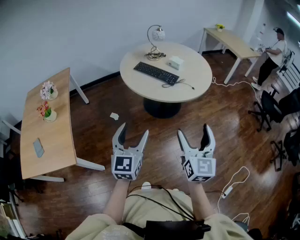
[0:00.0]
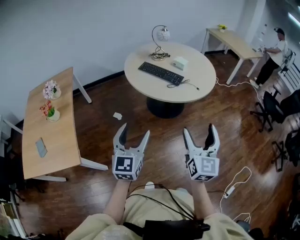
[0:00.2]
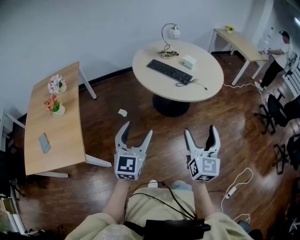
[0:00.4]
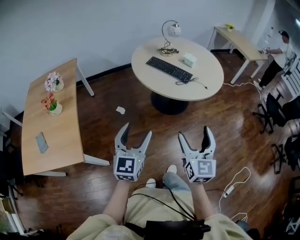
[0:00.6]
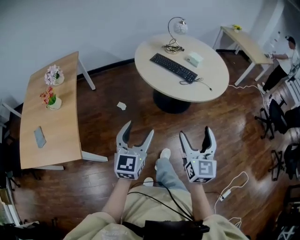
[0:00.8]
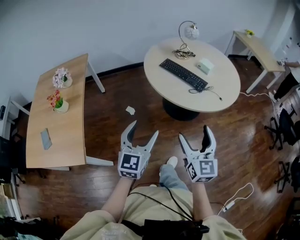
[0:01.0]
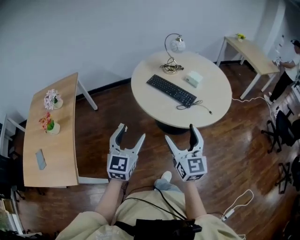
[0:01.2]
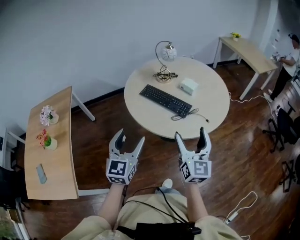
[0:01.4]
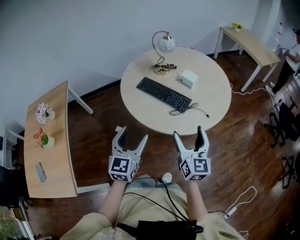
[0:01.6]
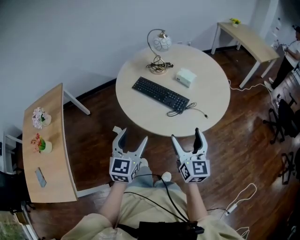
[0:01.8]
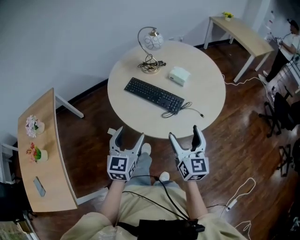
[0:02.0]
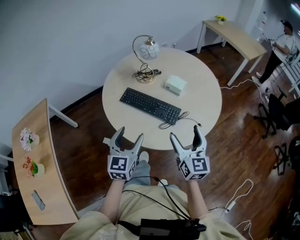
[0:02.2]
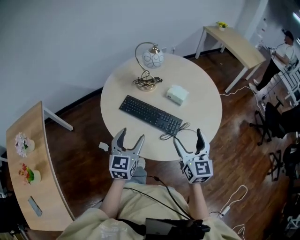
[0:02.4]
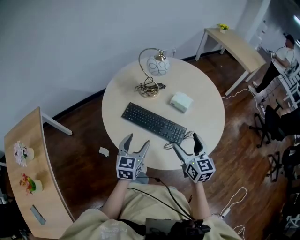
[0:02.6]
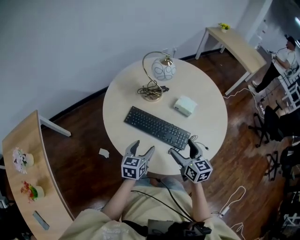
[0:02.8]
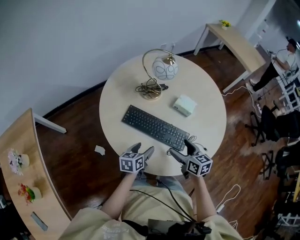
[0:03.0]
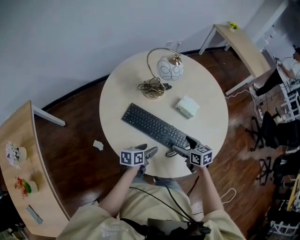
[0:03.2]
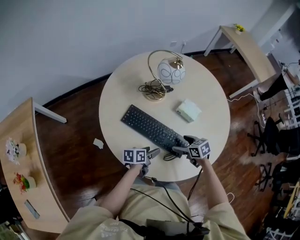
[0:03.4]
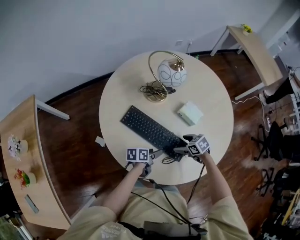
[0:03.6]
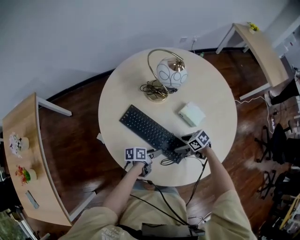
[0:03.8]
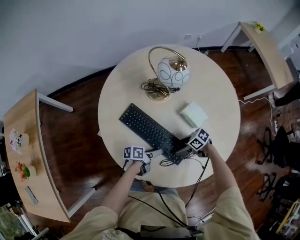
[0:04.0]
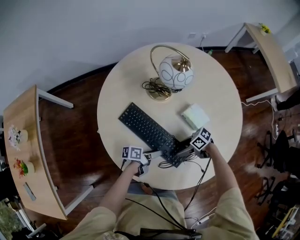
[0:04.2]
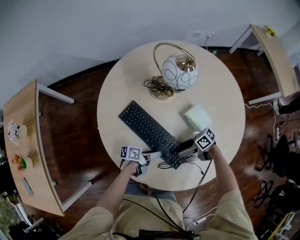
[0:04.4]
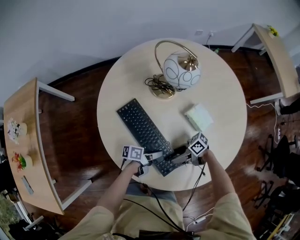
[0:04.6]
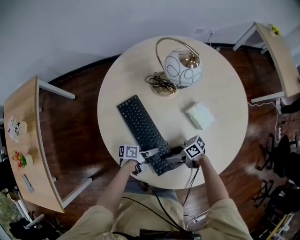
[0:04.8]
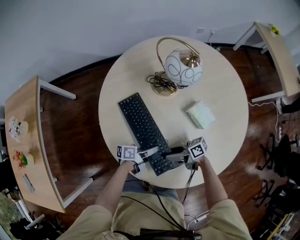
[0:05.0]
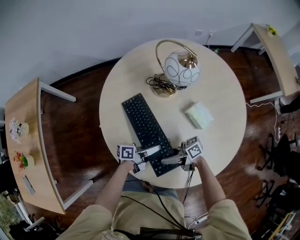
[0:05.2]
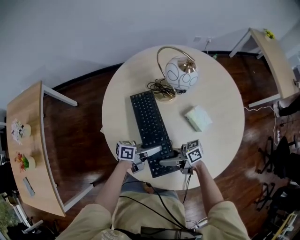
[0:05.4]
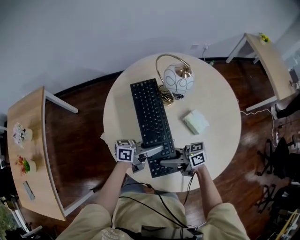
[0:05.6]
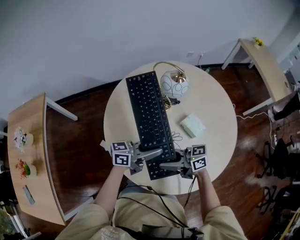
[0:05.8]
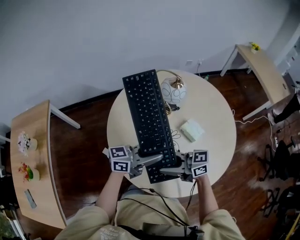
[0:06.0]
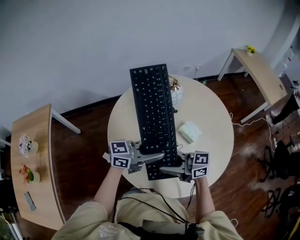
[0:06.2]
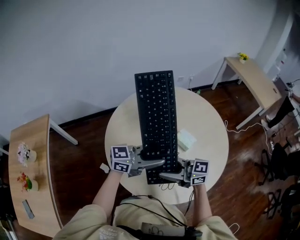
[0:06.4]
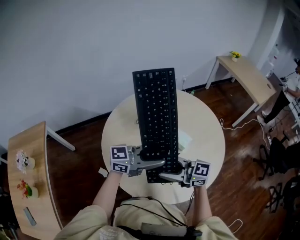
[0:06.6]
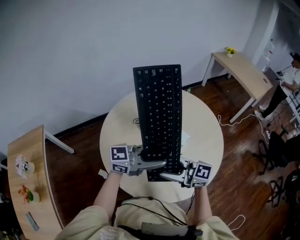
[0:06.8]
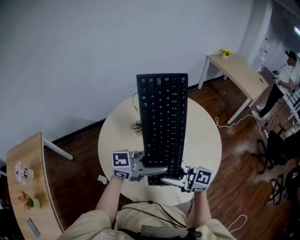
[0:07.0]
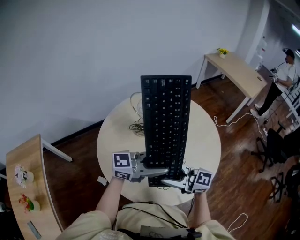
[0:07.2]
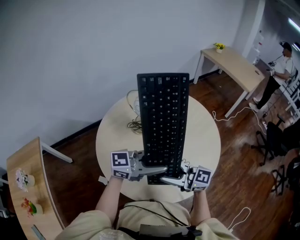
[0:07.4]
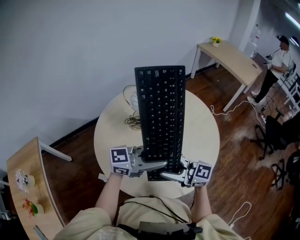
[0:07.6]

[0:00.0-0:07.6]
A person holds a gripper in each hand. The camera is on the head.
0:00.0 to 0:01.6: The two grippers go about 30 cm forward.
0:01.6 to 0:03.0: Both grippers travel together forward and downward, roughly 35 cm. The right gripper turns by some 40 degrees, while the left gripper changes its angle by some 50 degrees.
0:03.0 to 0:04.6: The left gripper moves about 15 cm, twists approximately 40 degrees counterclockwise, seen from behind, and closes. The right gripper heads downward, covering approximately 15 cm, and rotates roughly 80 degrees.
0:04.6 to 0:06.0: Both grippers move upward, roughly 30 cm. The right gripper swivels roughly 50 degrees, and closes its fingers, while the left gripper rolls clockwise, seen from behind, by approximately 60 degrees.
0:06.0 to 0:07.6: The left gripper changes place by some 15 cm, and changes its angle by approximately 30 degrees. Meanwhile the right gripper travels upward by some 5 cm, and swivels roughly 40 degrees.

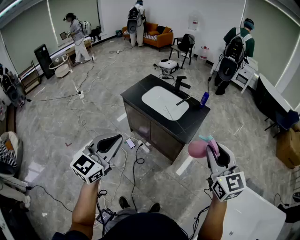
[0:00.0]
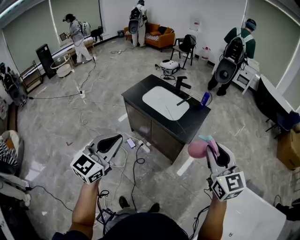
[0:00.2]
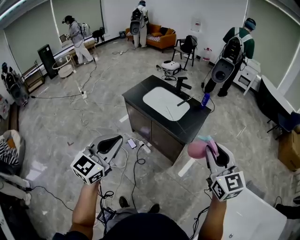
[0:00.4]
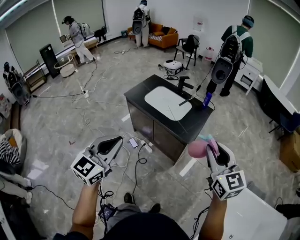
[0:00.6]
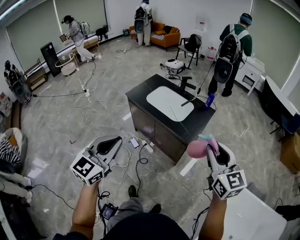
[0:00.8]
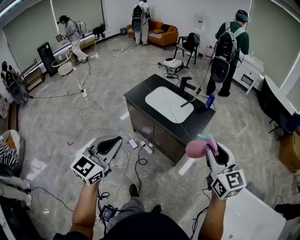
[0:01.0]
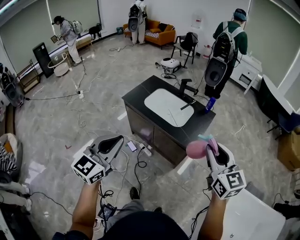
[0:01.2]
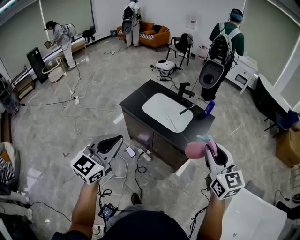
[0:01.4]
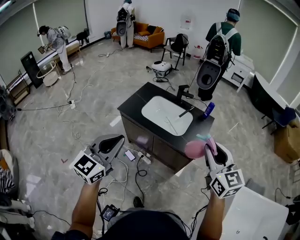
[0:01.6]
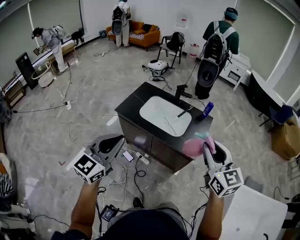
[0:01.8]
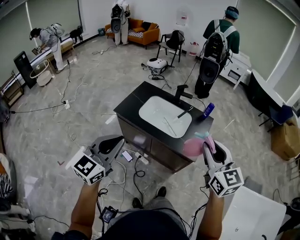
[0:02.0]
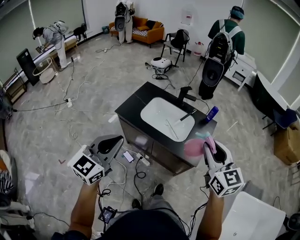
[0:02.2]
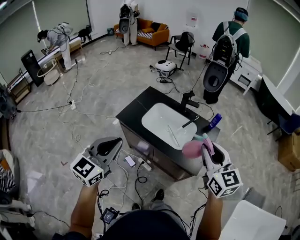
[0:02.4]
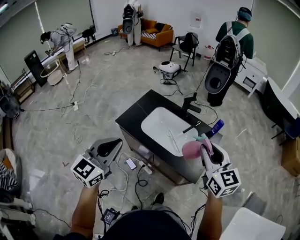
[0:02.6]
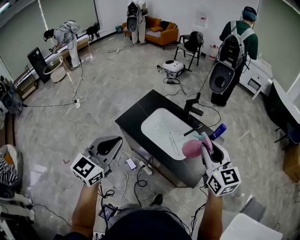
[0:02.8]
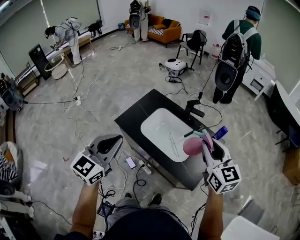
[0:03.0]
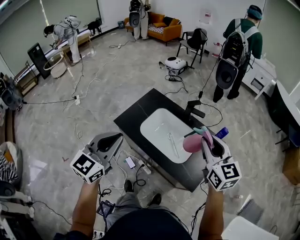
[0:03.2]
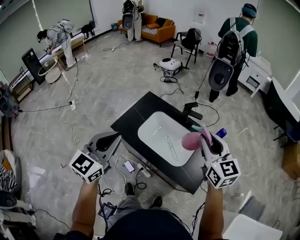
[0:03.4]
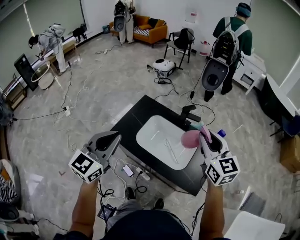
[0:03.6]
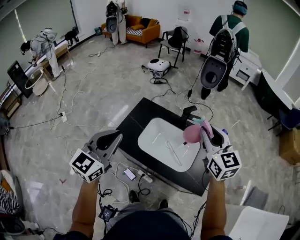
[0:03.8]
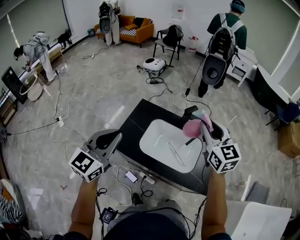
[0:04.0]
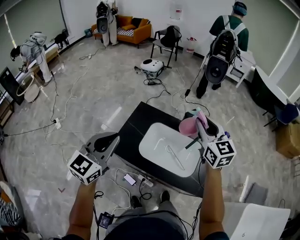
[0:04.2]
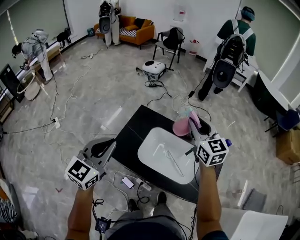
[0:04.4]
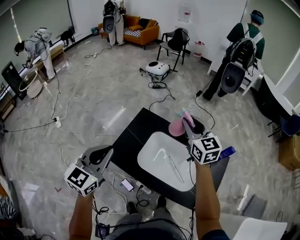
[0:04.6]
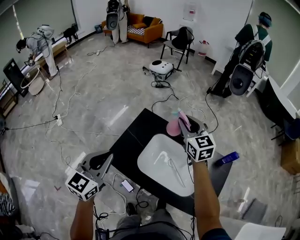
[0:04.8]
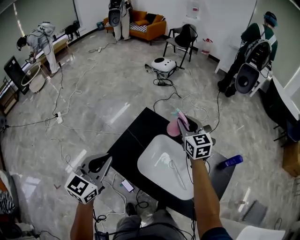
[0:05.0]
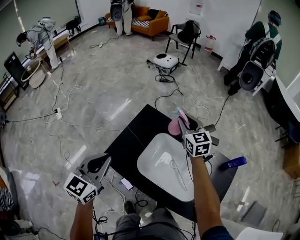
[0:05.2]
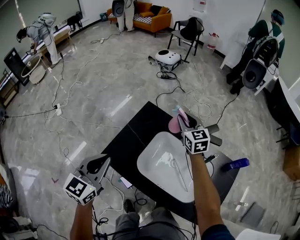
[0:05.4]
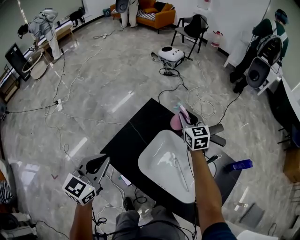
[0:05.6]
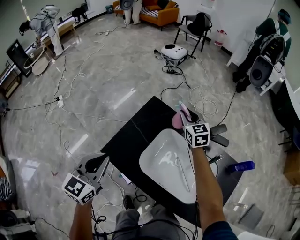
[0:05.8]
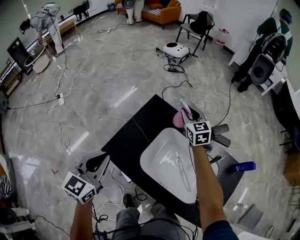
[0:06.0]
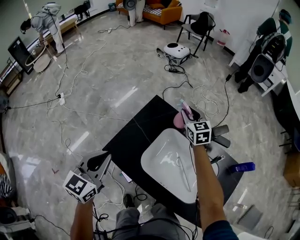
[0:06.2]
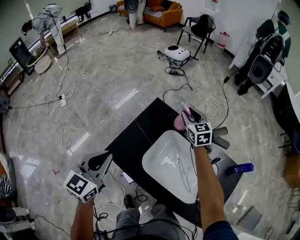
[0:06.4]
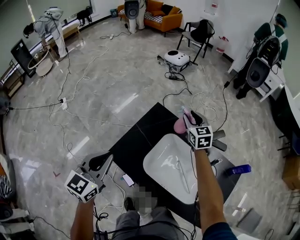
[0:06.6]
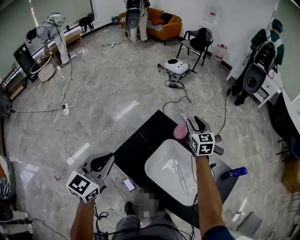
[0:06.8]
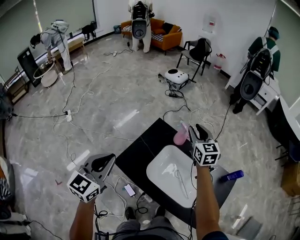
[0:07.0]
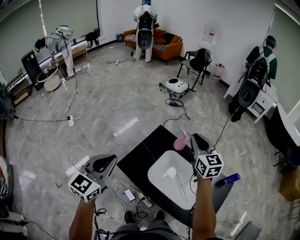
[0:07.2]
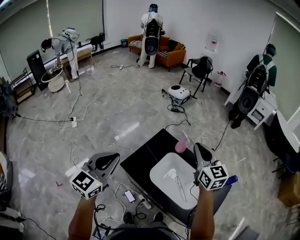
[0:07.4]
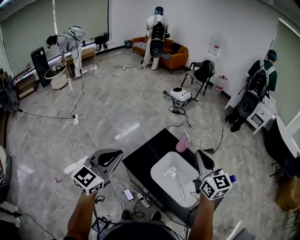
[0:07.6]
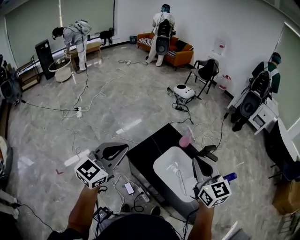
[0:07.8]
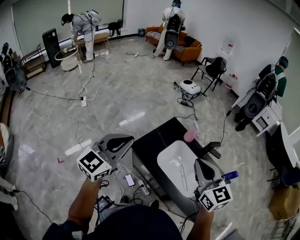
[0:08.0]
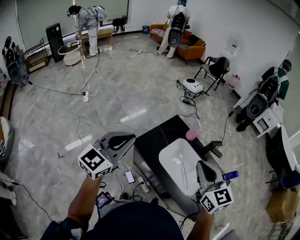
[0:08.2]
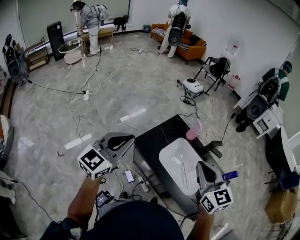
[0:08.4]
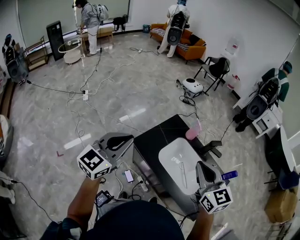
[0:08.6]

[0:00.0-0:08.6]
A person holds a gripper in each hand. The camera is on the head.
0:00.0 to 0:01.4: Both grippers move forward and to the left, approximately 15 cm.
0:01.4 to 0:02.8: The grippers both shift forward by some 30 cm.
0:02.8 to 0:04.4: Both grippers travel together forward and to the left, roughly 30 cm.
0:04.4 to 0:05.8: The left gripper is displaced downward by about 20 cm; the right gripper moves downward and forward, some 40 cm.
0:05.8 to 0:07.2: The left gripper travels upward by approximately 20 cm. Meanwhile the right gripper heads upward and backward, covering roughly 30 cm.
0:07.2 to 0:08.6: The left gripper travels backward and upward by about 15 cm. The right gripper heads backward, covering roughly 30 cm.

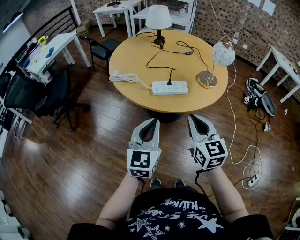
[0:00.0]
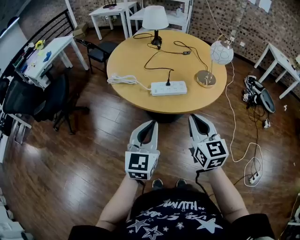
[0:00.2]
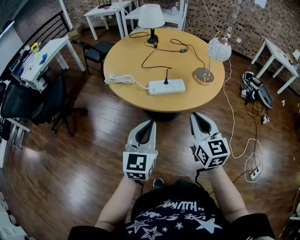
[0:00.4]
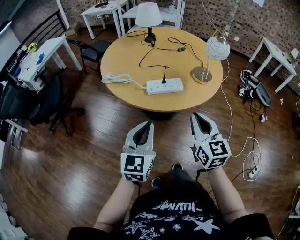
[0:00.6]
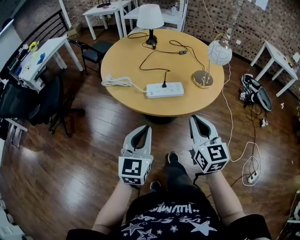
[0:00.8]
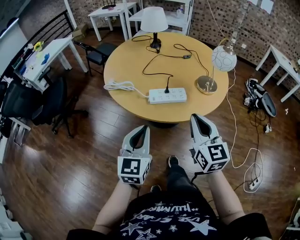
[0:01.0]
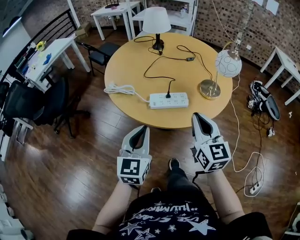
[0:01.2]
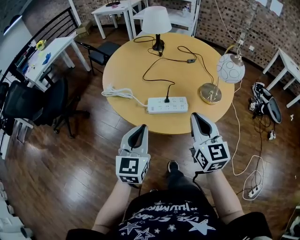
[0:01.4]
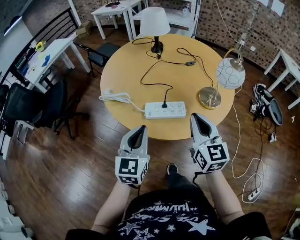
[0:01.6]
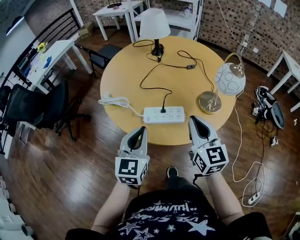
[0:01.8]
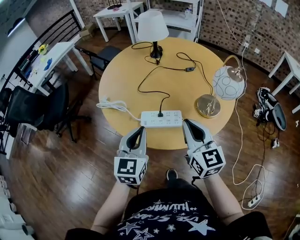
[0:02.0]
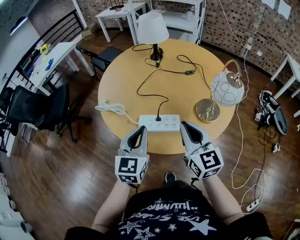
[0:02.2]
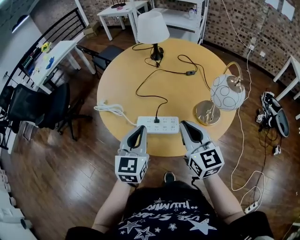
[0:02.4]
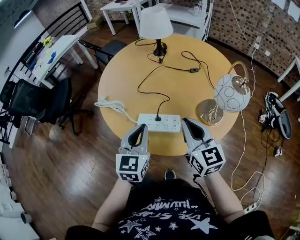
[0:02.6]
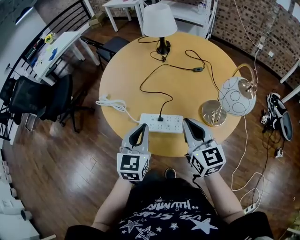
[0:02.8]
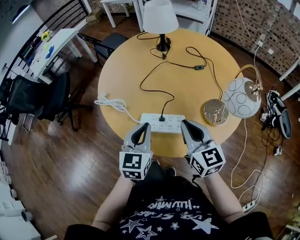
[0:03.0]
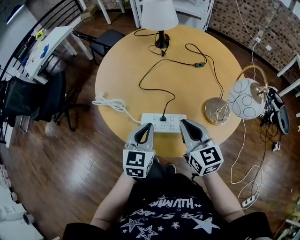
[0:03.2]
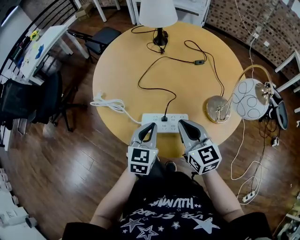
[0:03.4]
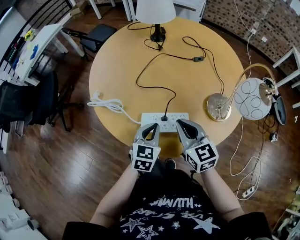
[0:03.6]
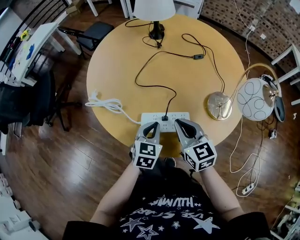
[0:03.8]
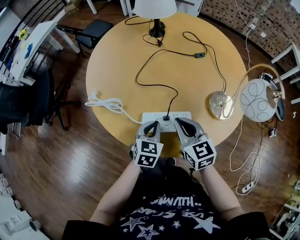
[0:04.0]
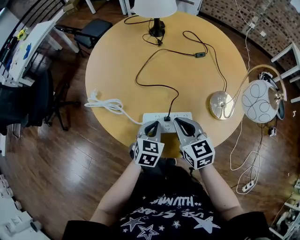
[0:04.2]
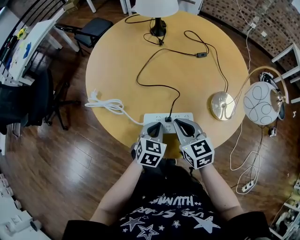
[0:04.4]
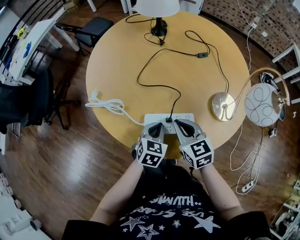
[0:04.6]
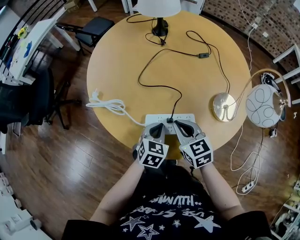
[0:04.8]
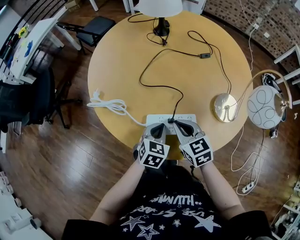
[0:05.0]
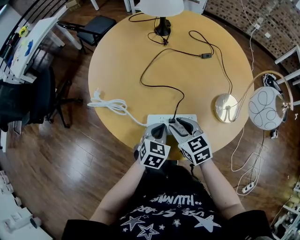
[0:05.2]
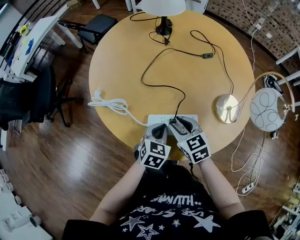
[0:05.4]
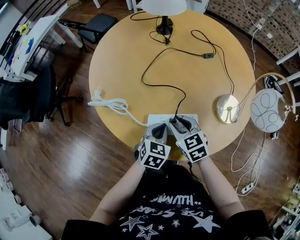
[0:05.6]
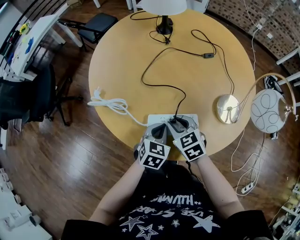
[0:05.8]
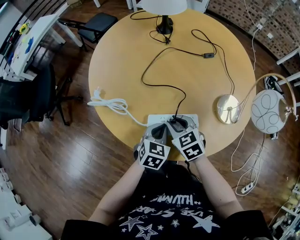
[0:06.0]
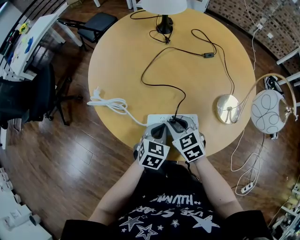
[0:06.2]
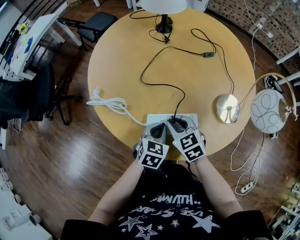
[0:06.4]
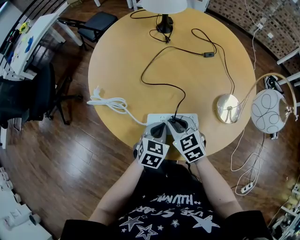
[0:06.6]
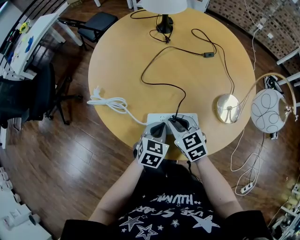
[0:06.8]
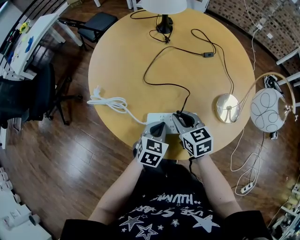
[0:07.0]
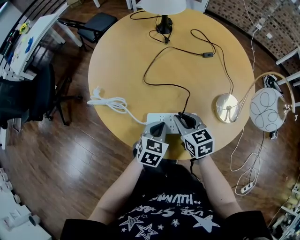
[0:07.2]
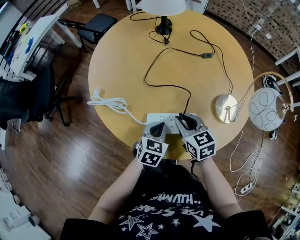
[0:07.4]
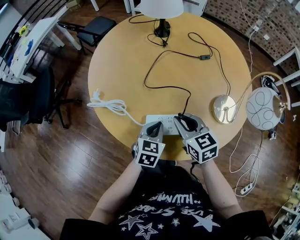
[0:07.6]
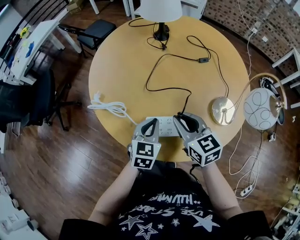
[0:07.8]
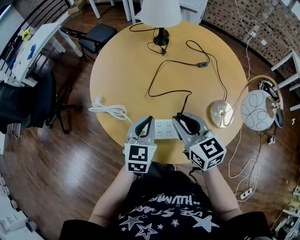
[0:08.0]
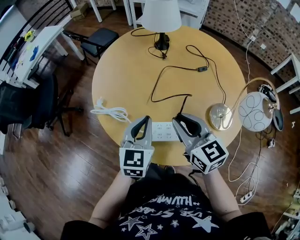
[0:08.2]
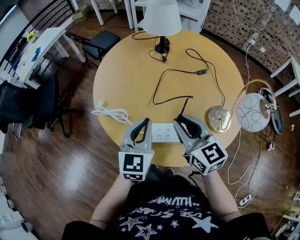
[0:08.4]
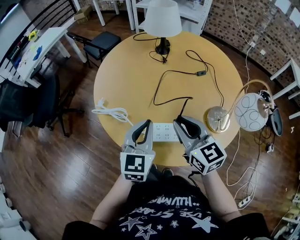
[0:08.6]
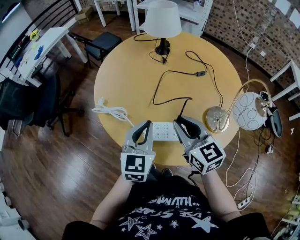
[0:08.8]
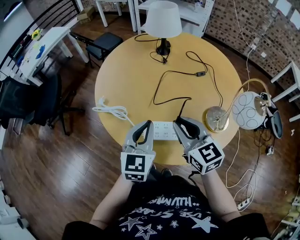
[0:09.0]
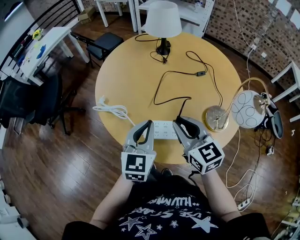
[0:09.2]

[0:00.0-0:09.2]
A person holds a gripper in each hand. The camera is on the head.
0:00.0 to 0:01.6: Both grippers travel together forward, about 15 cm.
0:01.6 to 0:03.0: The grippers both shift forward by roughly 10 cm.
0:03.0 to 0:04.6: The left gripper heads downward, covering approximately 15 cm, and rotates some 30 degrees. The right gripper travels downward and to the left by some 15 cm, and swivels about 20 degrees.
0:04.6 to 0:06.2: The right gripper changes place by some 5 cm, and opens its fingers.
0:06.2 to 0:07.6: The right gripper is displaced upward by some 5 cm.
0:07.6 to 0:09.2: The two grippers go about 15 cm upward. The left gripper turns by approximately 30 degrees.
